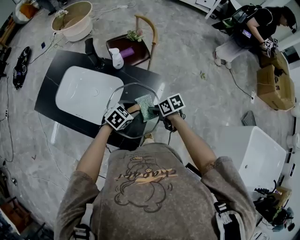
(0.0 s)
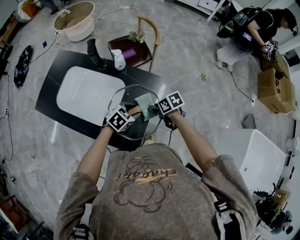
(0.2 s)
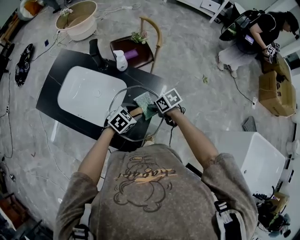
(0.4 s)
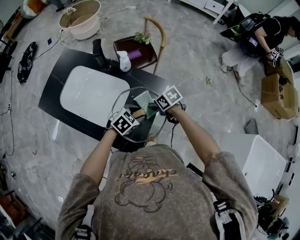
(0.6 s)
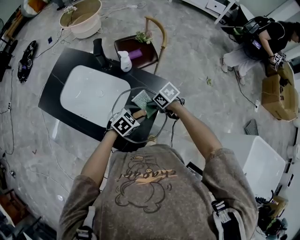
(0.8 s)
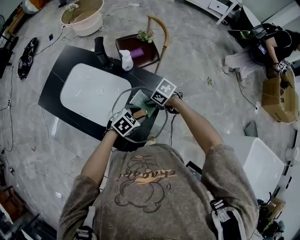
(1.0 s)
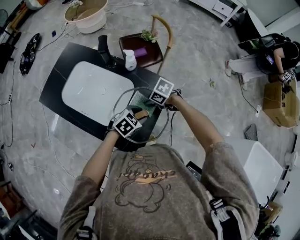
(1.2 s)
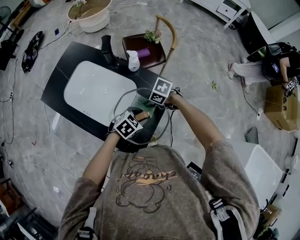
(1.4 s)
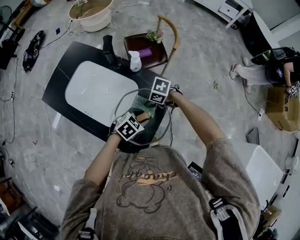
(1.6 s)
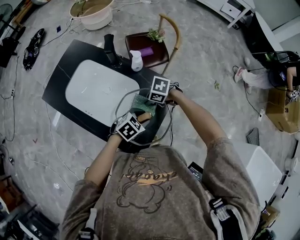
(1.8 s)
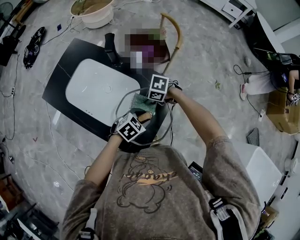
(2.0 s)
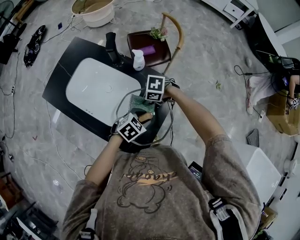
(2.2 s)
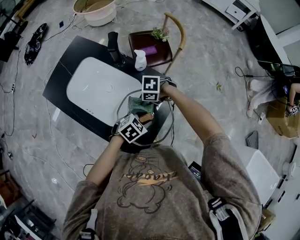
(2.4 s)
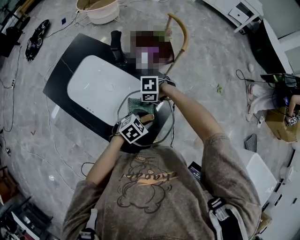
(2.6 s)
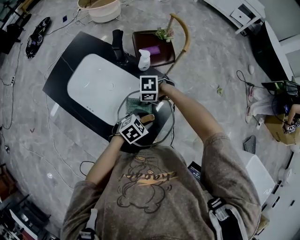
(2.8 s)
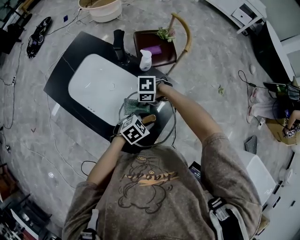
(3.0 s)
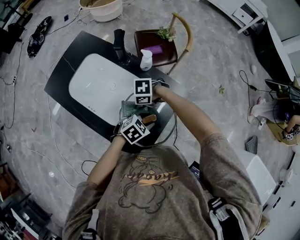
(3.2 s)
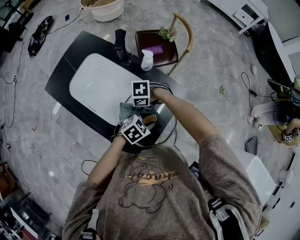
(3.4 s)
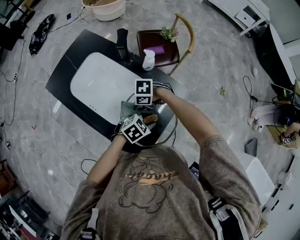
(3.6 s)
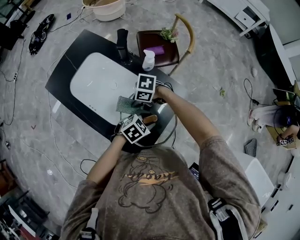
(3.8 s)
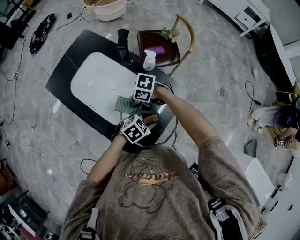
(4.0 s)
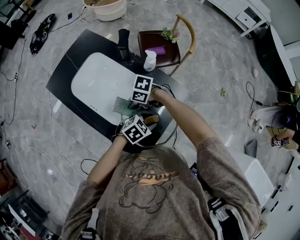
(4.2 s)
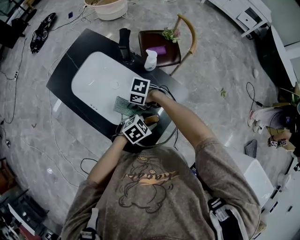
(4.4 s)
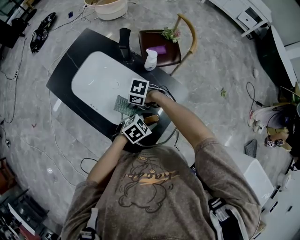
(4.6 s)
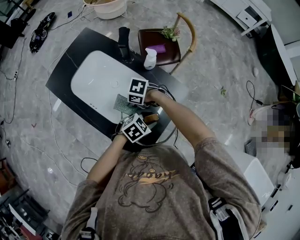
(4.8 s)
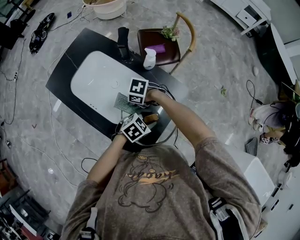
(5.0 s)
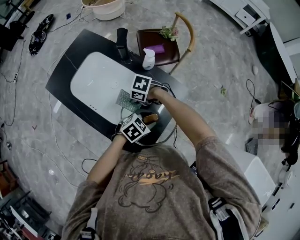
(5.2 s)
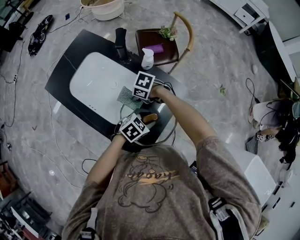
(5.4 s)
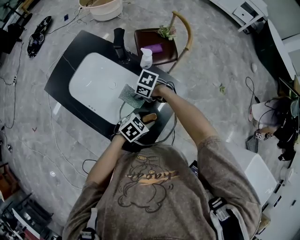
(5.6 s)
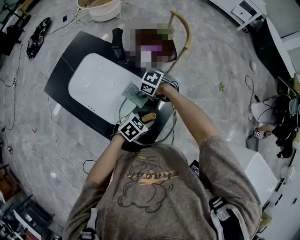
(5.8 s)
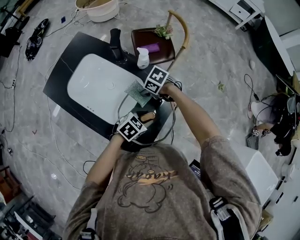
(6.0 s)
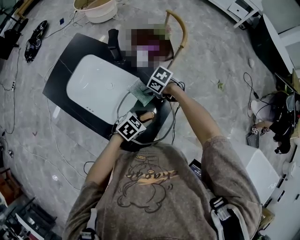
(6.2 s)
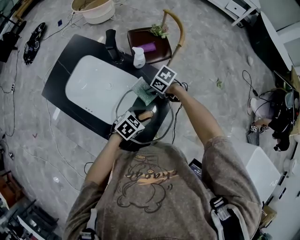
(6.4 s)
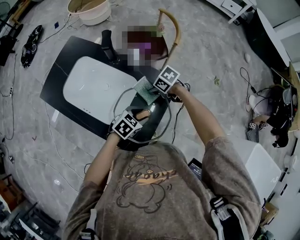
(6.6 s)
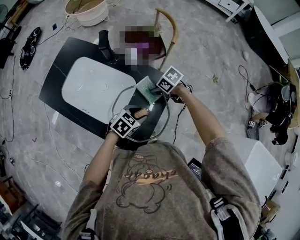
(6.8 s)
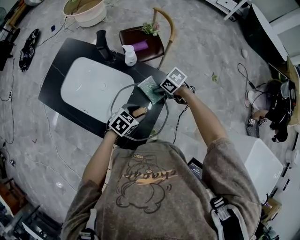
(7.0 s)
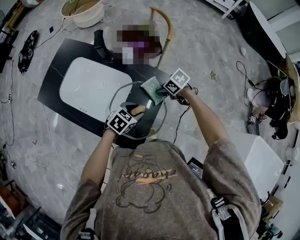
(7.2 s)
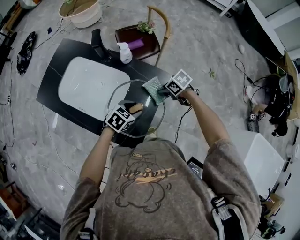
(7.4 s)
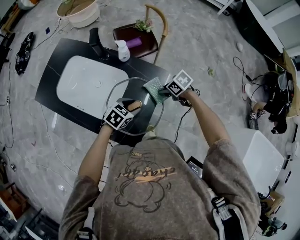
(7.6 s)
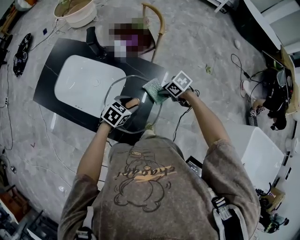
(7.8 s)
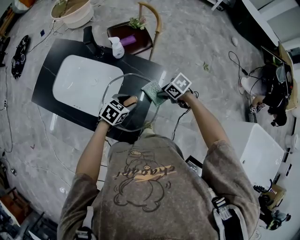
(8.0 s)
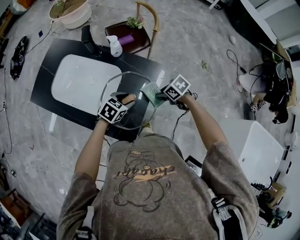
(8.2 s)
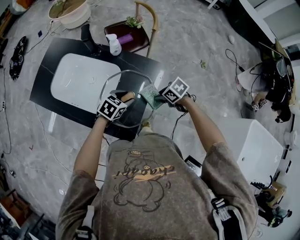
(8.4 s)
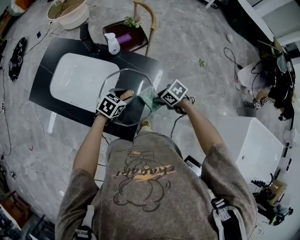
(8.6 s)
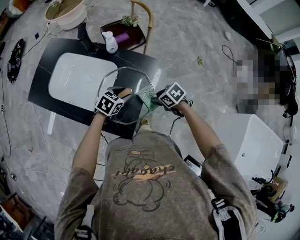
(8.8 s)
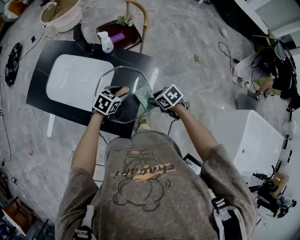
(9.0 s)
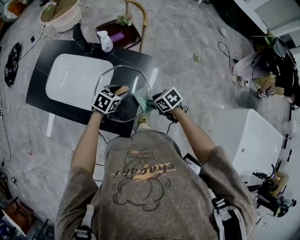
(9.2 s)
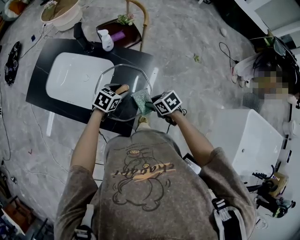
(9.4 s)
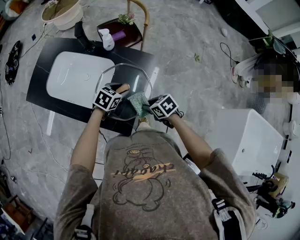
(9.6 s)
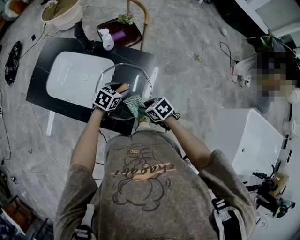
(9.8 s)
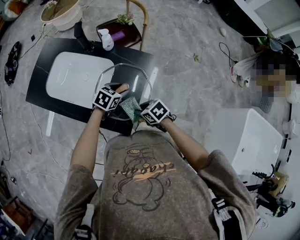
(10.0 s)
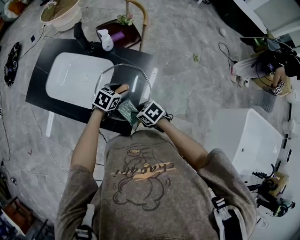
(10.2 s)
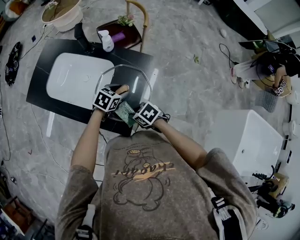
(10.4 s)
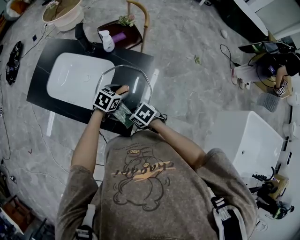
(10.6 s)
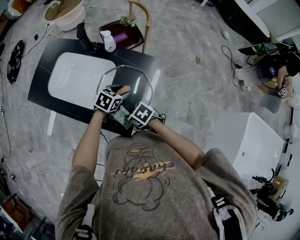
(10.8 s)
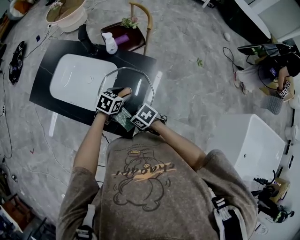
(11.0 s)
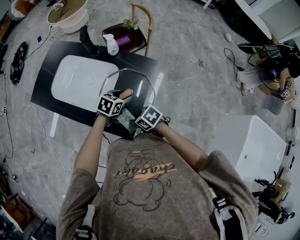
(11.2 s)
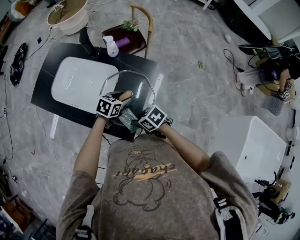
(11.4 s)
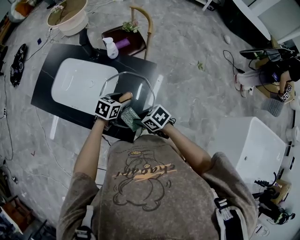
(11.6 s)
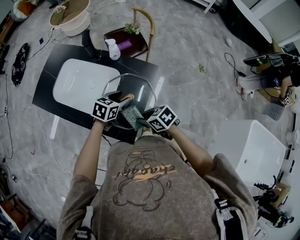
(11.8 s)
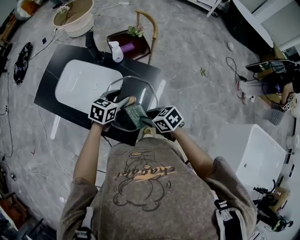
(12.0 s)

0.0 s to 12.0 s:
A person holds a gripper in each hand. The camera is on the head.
0.0 to 1.6 s: The right gripper ends up approximately 10 cm from where it was, and rolls counterclockwise, seen from behind, by about 50 degrees.
1.6 to 3.0 s: The right gripper shifts by about 5 cm, and swivels roughly 20 degrees.
3.0 to 4.4 s: The right gripper heads to the right, covering roughly 5 cm.
4.4 to 6.0 s: The right gripper shifts by some 10 cm.
6.0 to 7.6 s: The right gripper moves some 20 cm, and swivels some 20 degrees.
7.6 to 9.0 s: The right gripper changes place by about 15 cm.
9.0 to 10.4 s: The right gripper shifts by roughly 15 cm.
10.4 to 12.0 s: The grippers both shift upward by about 5 cm.

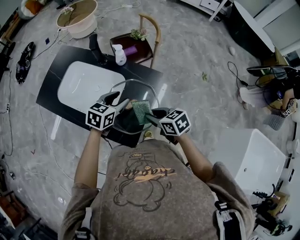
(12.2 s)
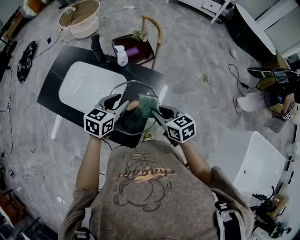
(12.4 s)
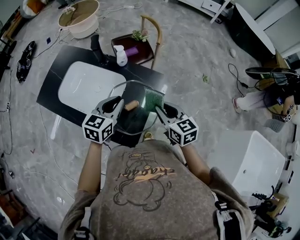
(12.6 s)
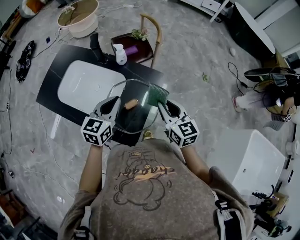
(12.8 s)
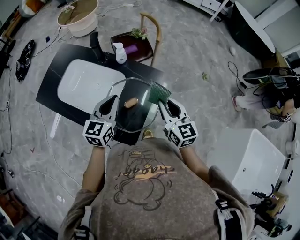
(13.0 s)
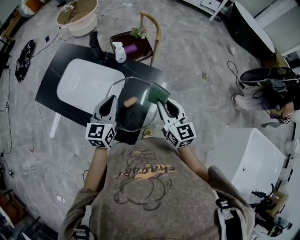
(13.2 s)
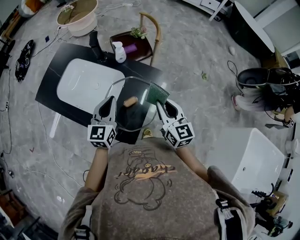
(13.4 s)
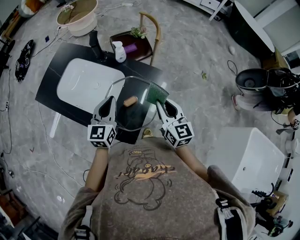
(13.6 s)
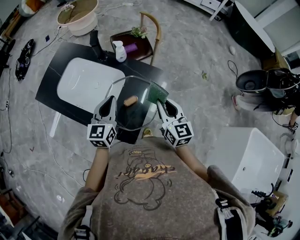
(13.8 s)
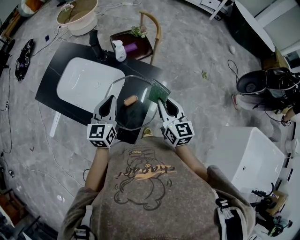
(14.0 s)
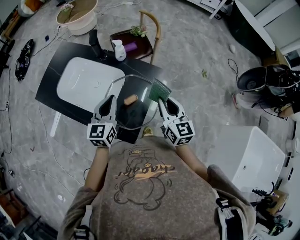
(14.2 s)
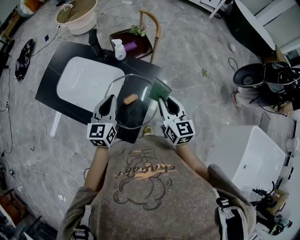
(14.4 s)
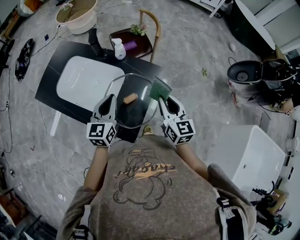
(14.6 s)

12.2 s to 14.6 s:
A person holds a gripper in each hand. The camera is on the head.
12.2 to 13.4 s: The right gripper goes approximately 10 cm upward and to the right, and turns by roughly 50 degrees. The left gripper is displaced upward by some 5 cm, changes its angle by roughly 30 degrees, and closes up.
13.4 to 14.6 s: There are only small adjustments of the grippers.

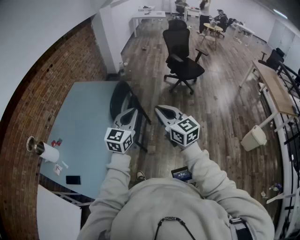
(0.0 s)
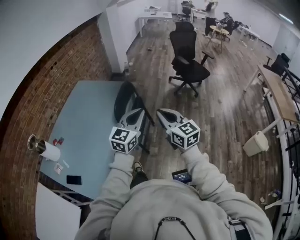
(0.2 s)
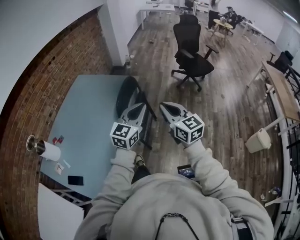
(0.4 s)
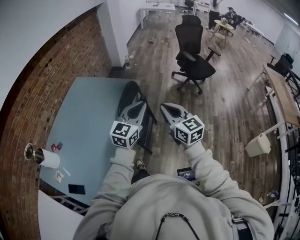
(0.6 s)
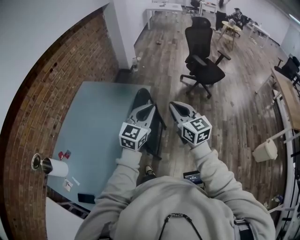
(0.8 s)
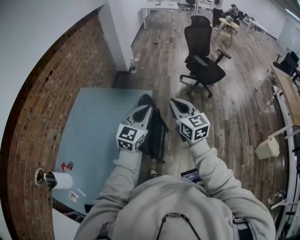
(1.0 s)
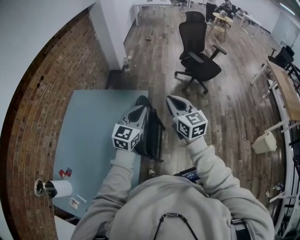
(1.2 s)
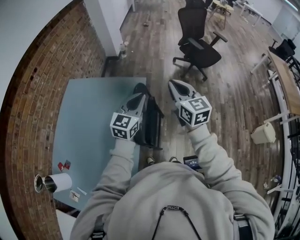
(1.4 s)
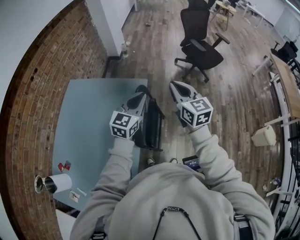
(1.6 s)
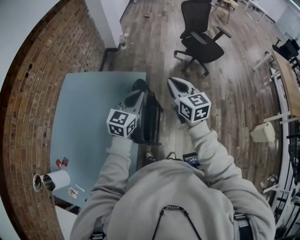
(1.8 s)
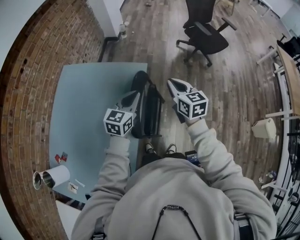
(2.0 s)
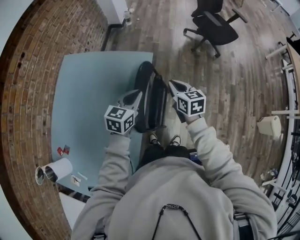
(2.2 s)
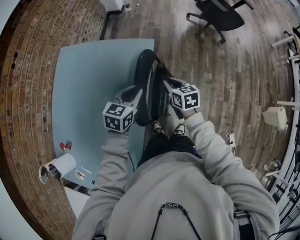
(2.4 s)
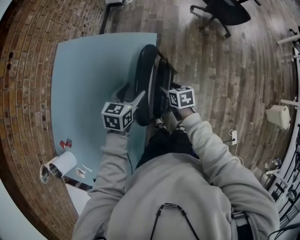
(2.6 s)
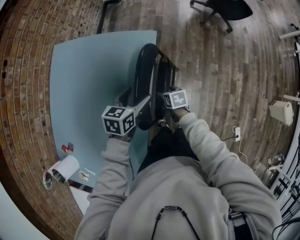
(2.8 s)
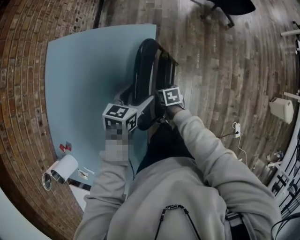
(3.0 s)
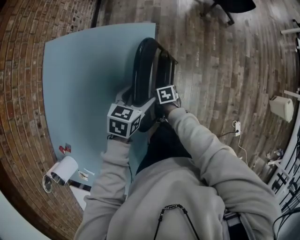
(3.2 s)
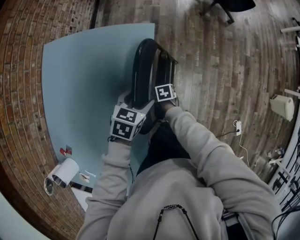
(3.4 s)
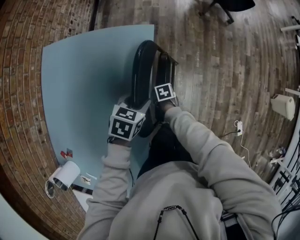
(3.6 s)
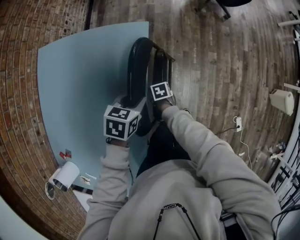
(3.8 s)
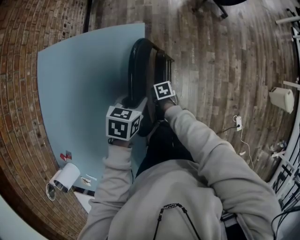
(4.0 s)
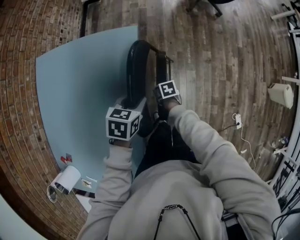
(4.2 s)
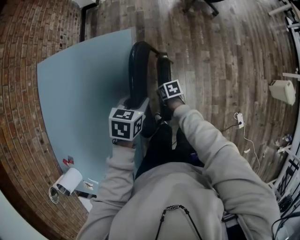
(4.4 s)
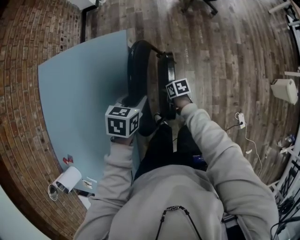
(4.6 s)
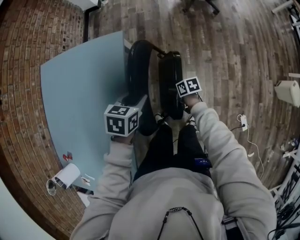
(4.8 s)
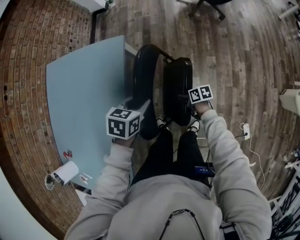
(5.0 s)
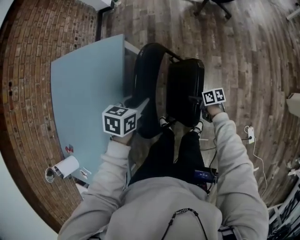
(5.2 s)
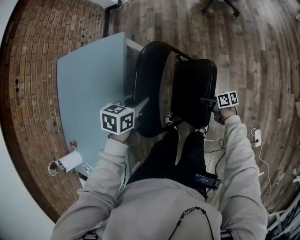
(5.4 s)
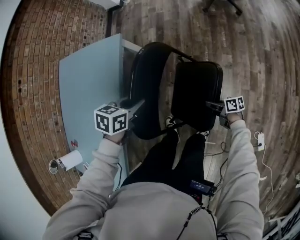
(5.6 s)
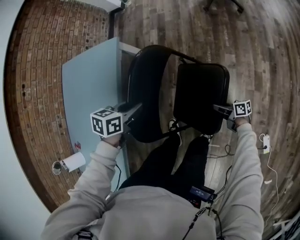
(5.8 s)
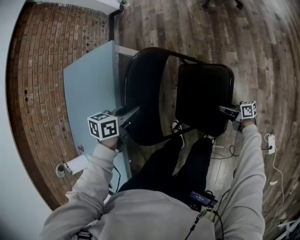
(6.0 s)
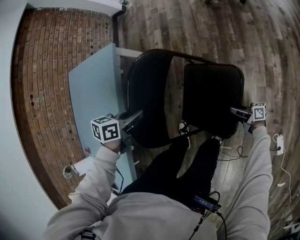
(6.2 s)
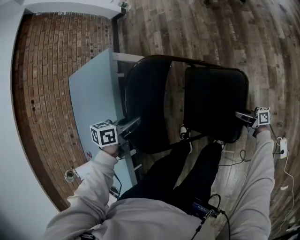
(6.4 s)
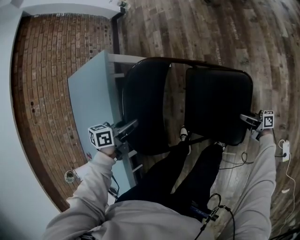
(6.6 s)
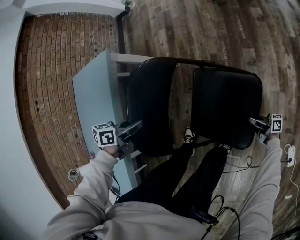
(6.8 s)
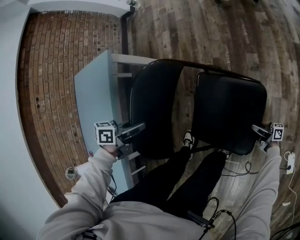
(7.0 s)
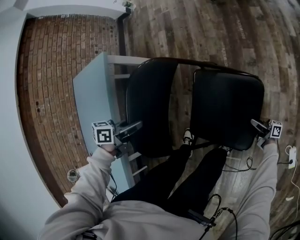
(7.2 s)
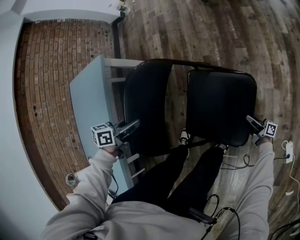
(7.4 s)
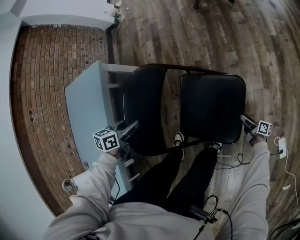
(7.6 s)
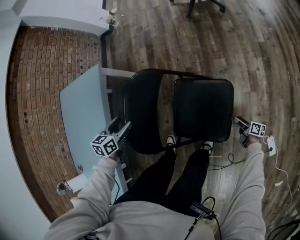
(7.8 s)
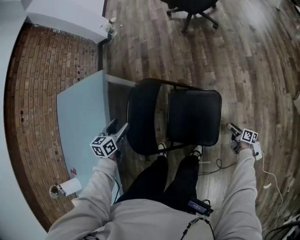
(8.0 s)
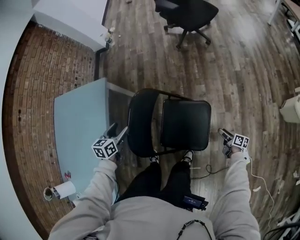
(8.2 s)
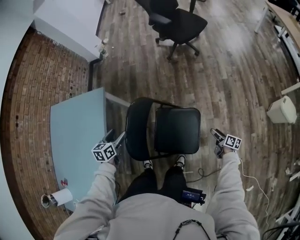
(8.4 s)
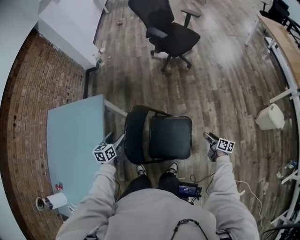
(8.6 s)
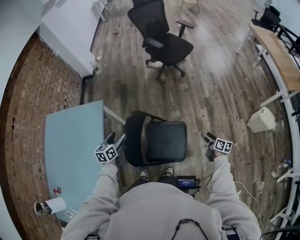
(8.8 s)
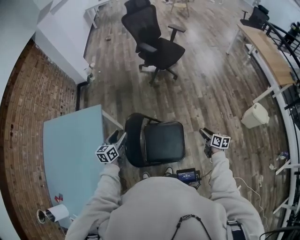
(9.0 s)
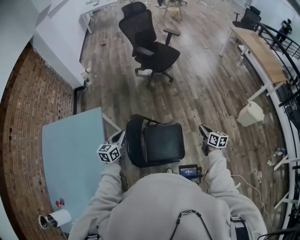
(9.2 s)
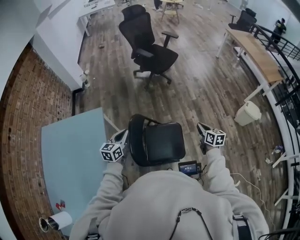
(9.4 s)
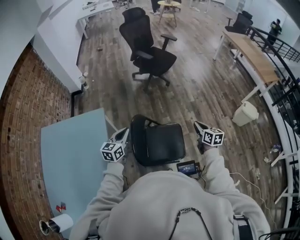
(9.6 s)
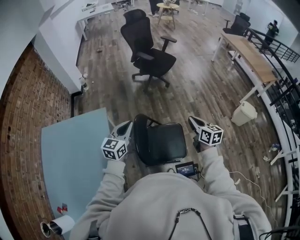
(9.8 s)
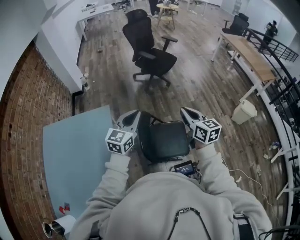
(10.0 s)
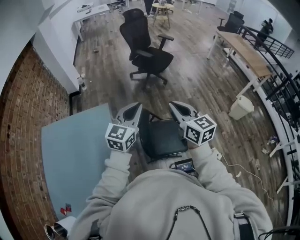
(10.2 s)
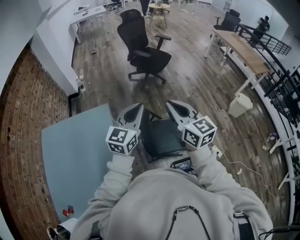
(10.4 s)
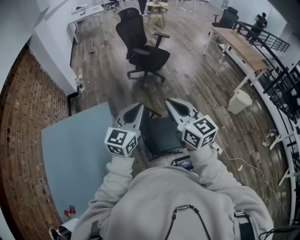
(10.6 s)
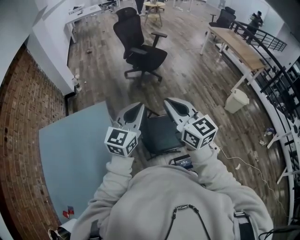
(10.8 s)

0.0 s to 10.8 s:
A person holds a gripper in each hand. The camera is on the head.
0.0 to 1.6 s: Both grippers are carried forward, some 40 cm.
1.6 to 3.0 s: The right gripper travels downward by about 50 cm, tips its fingers downward by roughly 50 degrees, and opens its fingers. Meanwhile the left gripper moves downward, roughly 25 cm, tilts its fingers about 40 degrees downward, and opens.
3.0 to 4.6 s: The left gripper travels to the right by approximately 10 cm, and closes its fingers; the right gripper is displaced to the right, downward and backward by approximately 15 cm, and closes.
4.6 to 6.2 s: The left gripper goes roughly 20 cm to the right, downward and backward; the right gripper shifts some 40 cm to the right, downward and backward, and tips its fingers upward by roughly 60 degrees.
6.2 to 7.8 s: The right gripper shifts by about 20 cm, rotates roughly 40 degrees, and opens its fingers. Meanwhile the left gripper changes its angle by approximately 20 degrees, and opens.
7.8 to 9.2 s: The right gripper heads upward, covering roughly 50 cm, turns by some 50 degrees, and closes its fingers. Meanwhile the left gripper moves upward, about 25 cm, turns by roughly 30 degrees, and closes its fingers.
9.2 to 10.8 s: The left gripper travels upward and backward by some 25 cm, and swivels roughly 30 degrees; the right gripper heads to the left, upward and backward, covering about 50 cm, and rotates roughly 40 degrees.
